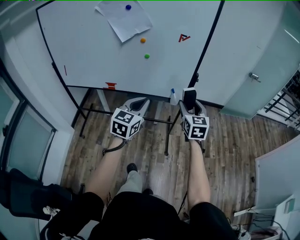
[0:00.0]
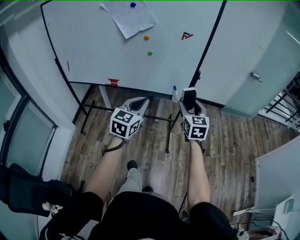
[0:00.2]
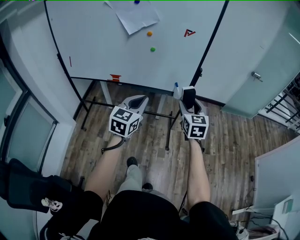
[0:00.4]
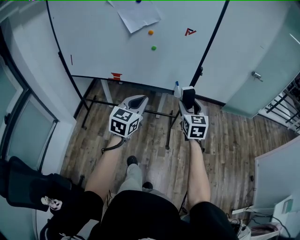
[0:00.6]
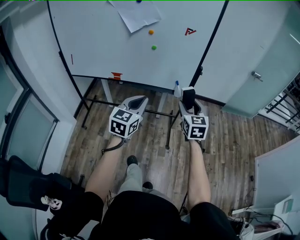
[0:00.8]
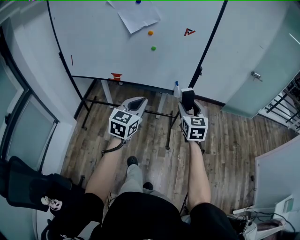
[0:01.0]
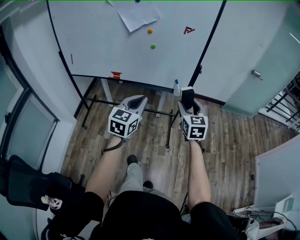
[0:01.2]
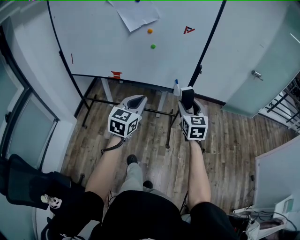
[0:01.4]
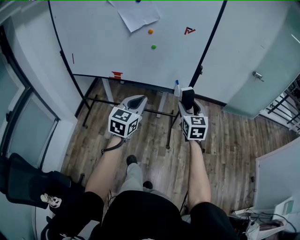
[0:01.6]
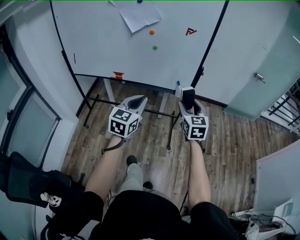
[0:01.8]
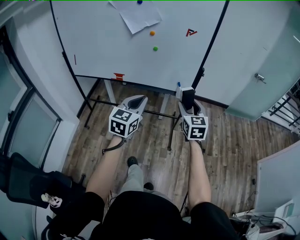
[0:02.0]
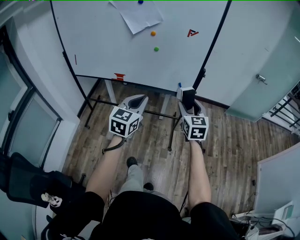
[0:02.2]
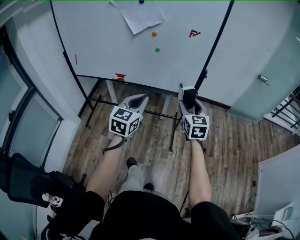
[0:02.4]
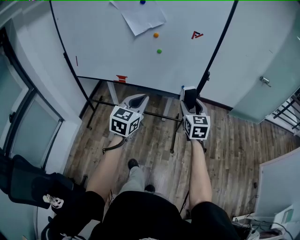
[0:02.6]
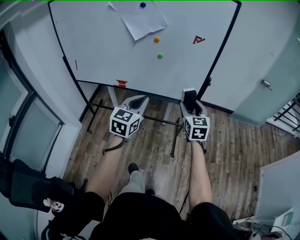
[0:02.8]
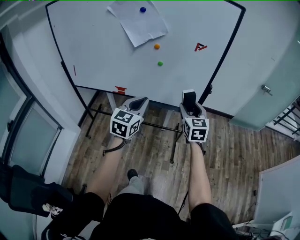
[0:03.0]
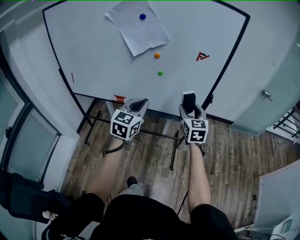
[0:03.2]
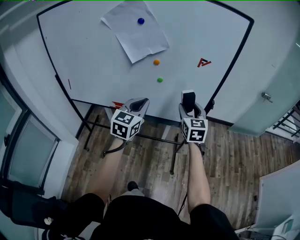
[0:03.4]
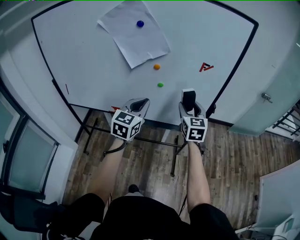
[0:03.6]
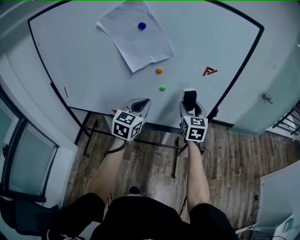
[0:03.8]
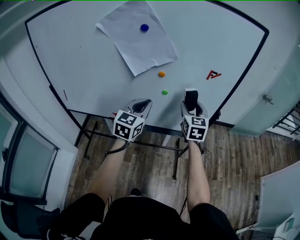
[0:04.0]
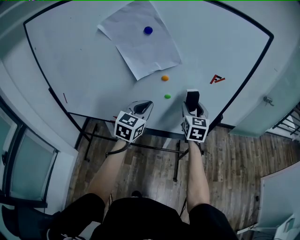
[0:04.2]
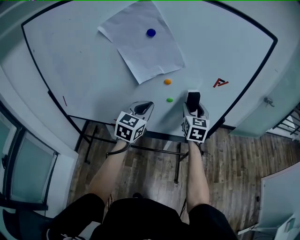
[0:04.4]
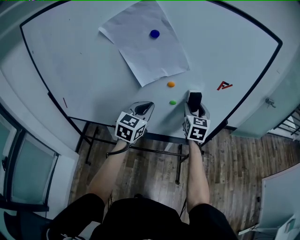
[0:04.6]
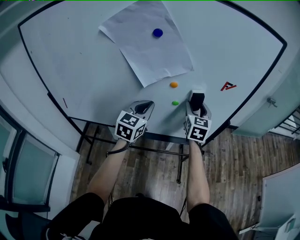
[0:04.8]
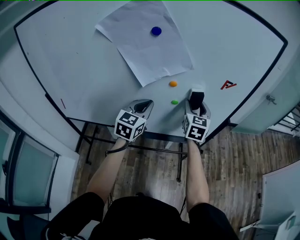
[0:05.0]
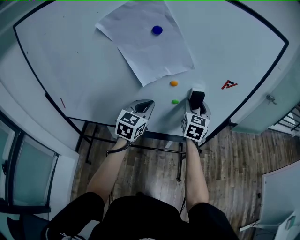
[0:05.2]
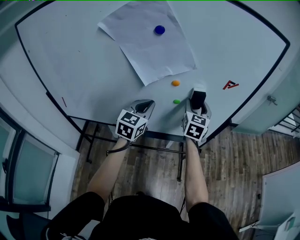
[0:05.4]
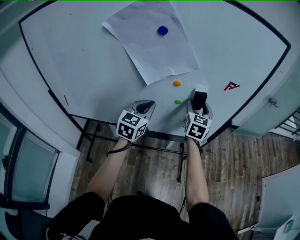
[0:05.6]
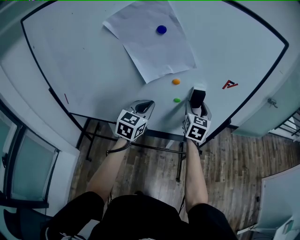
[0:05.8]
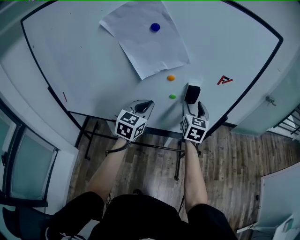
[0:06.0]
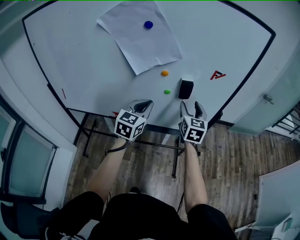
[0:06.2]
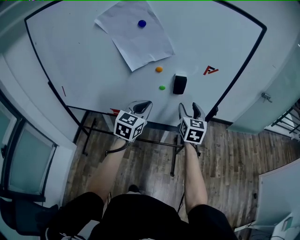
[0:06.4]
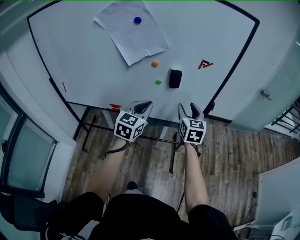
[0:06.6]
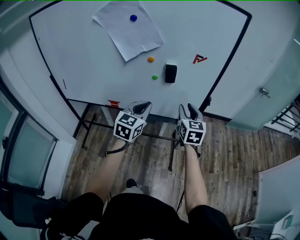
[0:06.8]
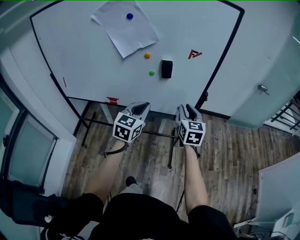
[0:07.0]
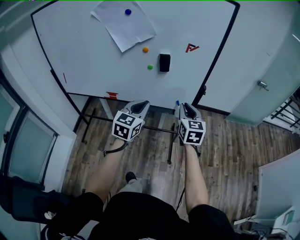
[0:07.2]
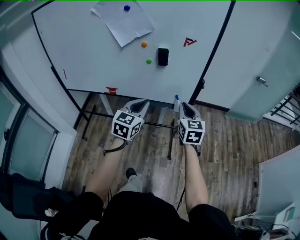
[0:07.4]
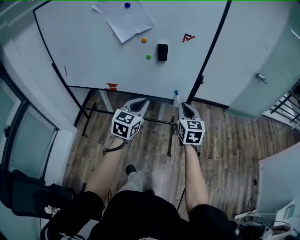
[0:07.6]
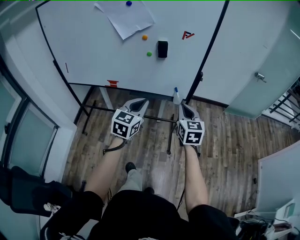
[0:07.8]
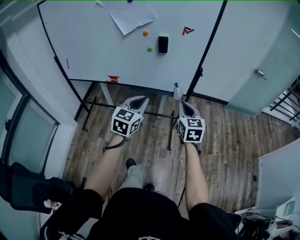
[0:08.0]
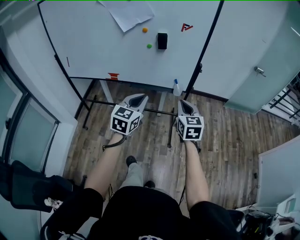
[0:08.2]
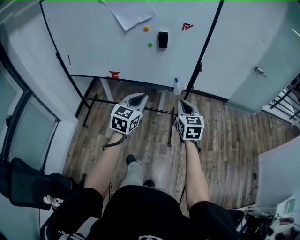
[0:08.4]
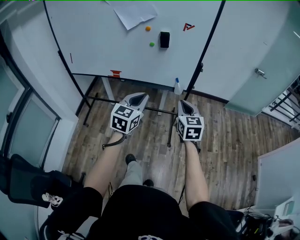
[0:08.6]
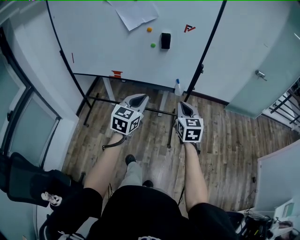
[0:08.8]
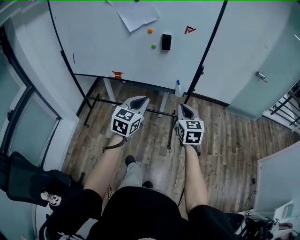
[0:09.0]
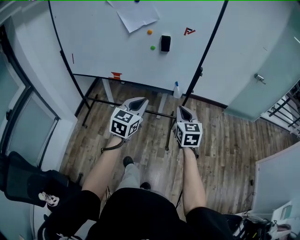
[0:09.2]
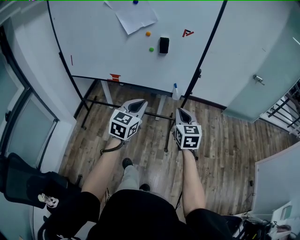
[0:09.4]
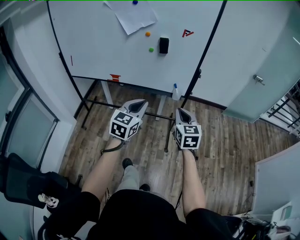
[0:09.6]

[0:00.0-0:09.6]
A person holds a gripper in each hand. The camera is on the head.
0.0 to 1.6 s: Both grippers move backward, roughly 10 cm.
1.6 to 3.2 s: Both grippers move forward, roughly 20 cm.
3.2 to 4.8 s: Both grippers move forward and to the left, about 20 cm.
4.8 to 6.4 s: The left gripper moves to the right and backward, approximately 10 cm. The right gripper heads backward and to the right, covering approximately 10 cm.
6.4 to 8.0 s: Both grippers move backward and to the right, some 25 cm. The right gripper closes its fingers.
8.0 to 9.6 s: The grippers both shift backward by roughly 5 cm.

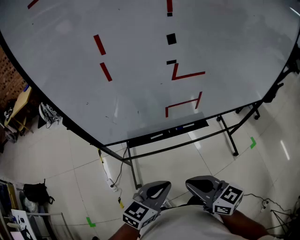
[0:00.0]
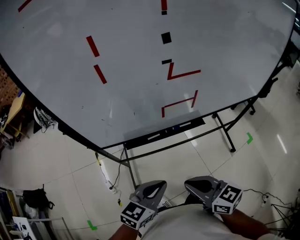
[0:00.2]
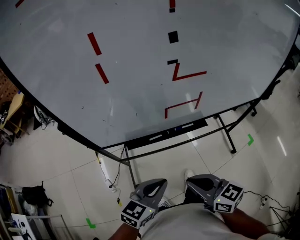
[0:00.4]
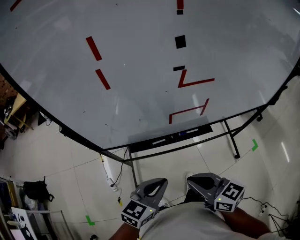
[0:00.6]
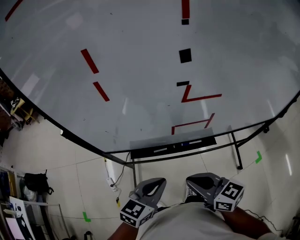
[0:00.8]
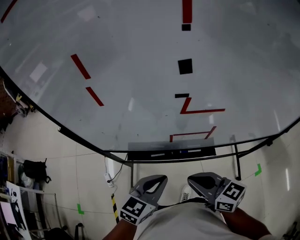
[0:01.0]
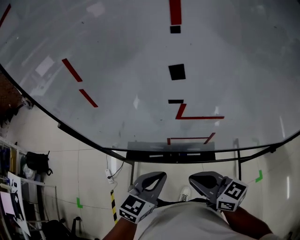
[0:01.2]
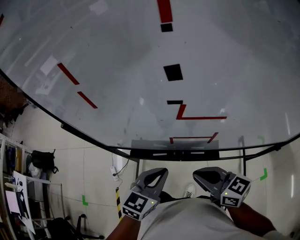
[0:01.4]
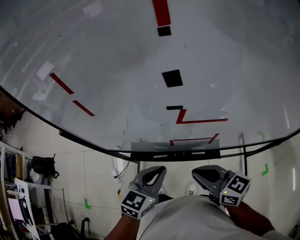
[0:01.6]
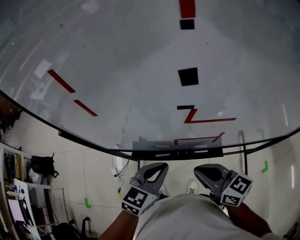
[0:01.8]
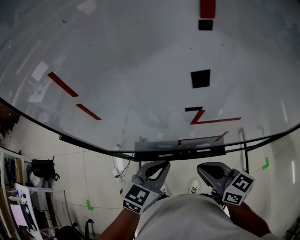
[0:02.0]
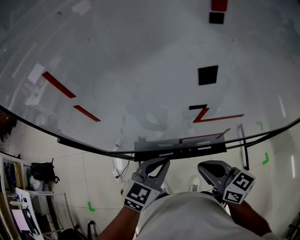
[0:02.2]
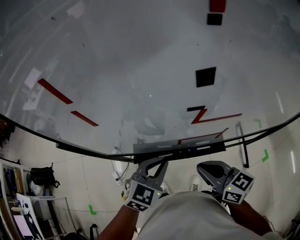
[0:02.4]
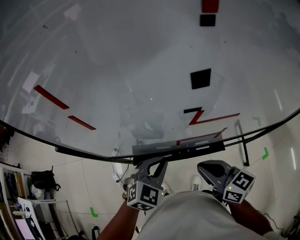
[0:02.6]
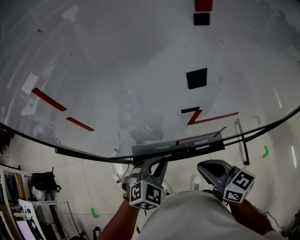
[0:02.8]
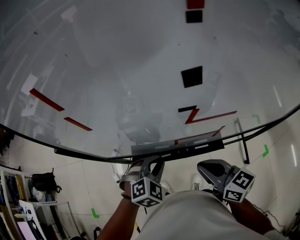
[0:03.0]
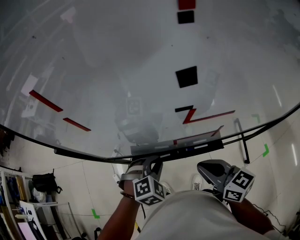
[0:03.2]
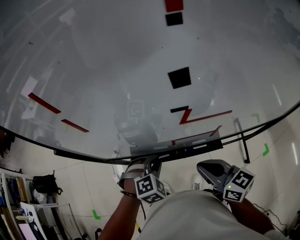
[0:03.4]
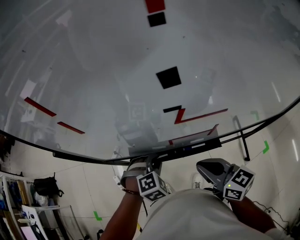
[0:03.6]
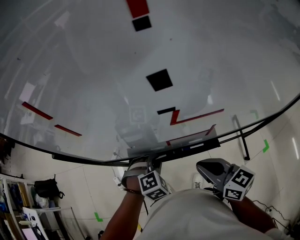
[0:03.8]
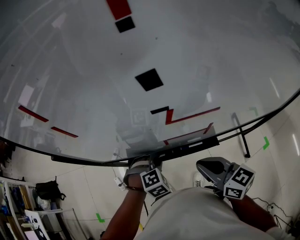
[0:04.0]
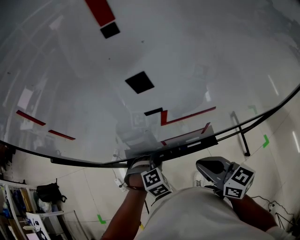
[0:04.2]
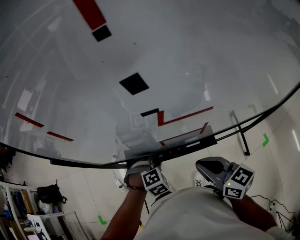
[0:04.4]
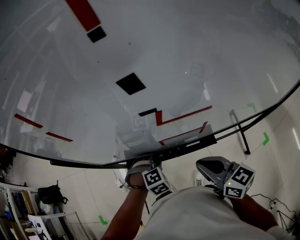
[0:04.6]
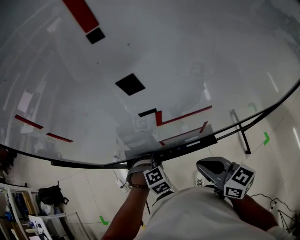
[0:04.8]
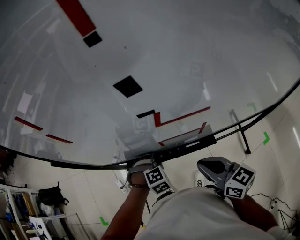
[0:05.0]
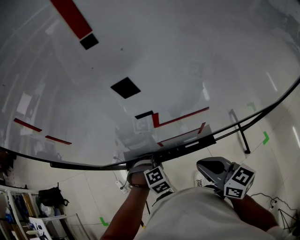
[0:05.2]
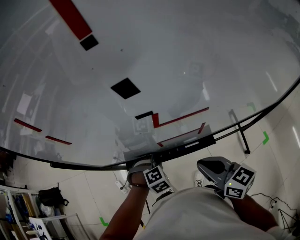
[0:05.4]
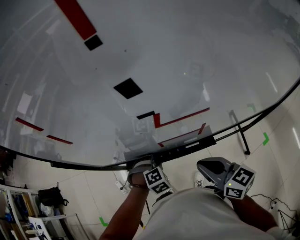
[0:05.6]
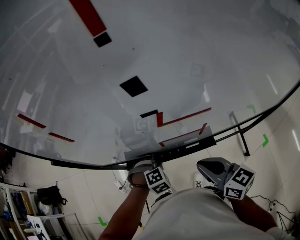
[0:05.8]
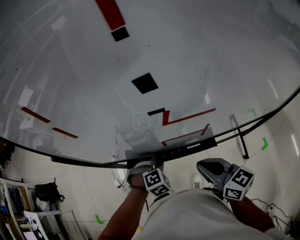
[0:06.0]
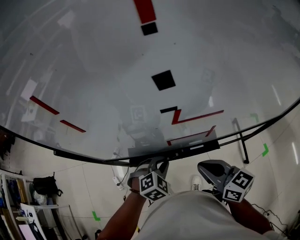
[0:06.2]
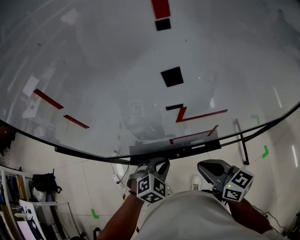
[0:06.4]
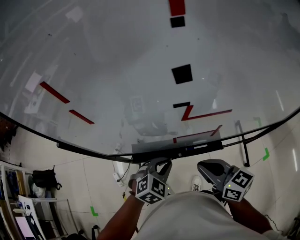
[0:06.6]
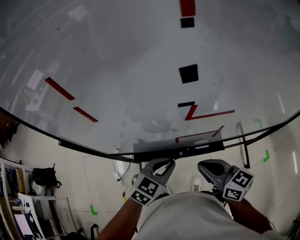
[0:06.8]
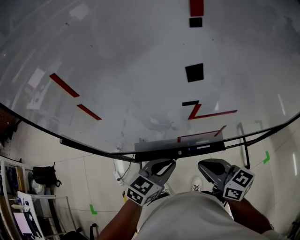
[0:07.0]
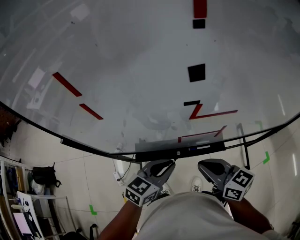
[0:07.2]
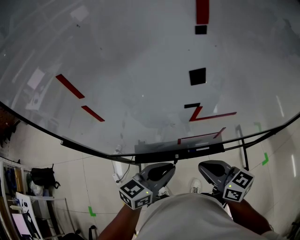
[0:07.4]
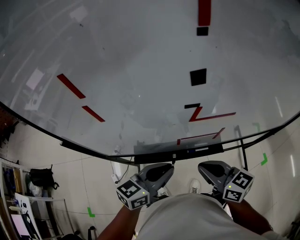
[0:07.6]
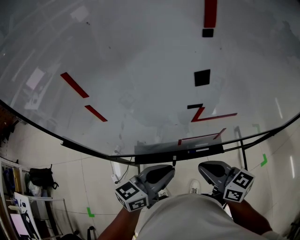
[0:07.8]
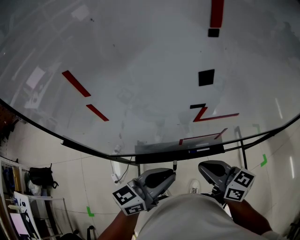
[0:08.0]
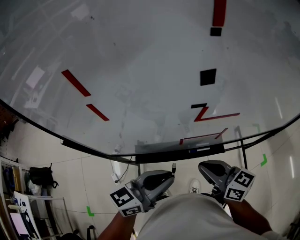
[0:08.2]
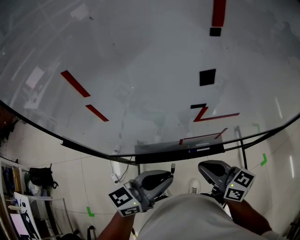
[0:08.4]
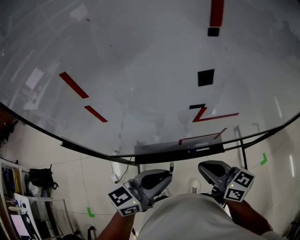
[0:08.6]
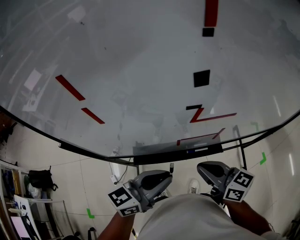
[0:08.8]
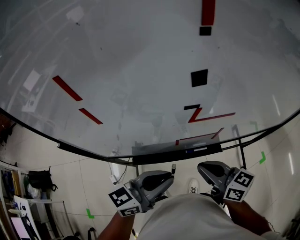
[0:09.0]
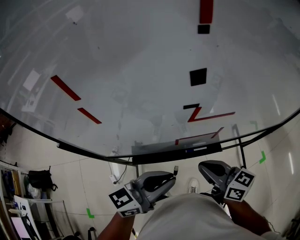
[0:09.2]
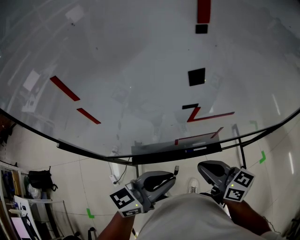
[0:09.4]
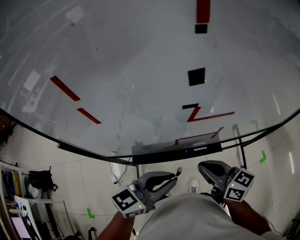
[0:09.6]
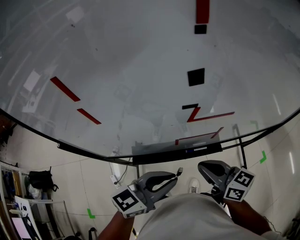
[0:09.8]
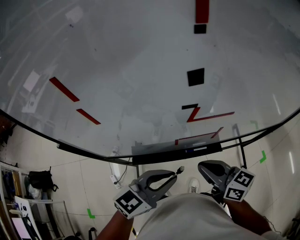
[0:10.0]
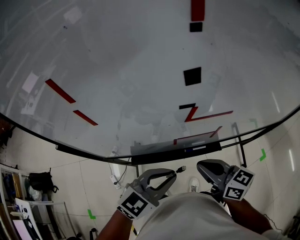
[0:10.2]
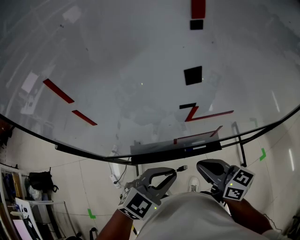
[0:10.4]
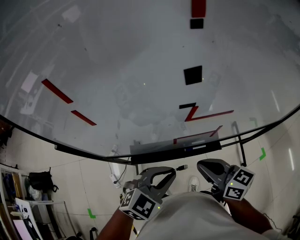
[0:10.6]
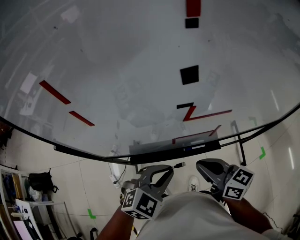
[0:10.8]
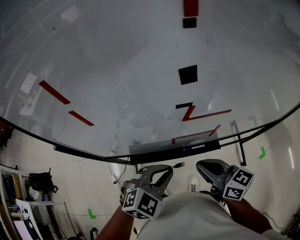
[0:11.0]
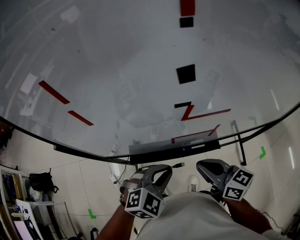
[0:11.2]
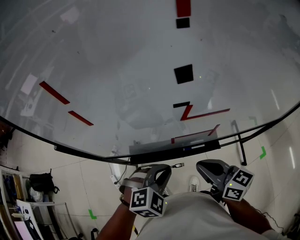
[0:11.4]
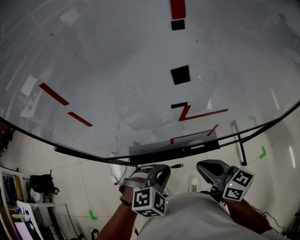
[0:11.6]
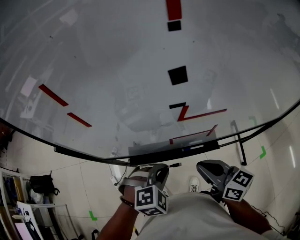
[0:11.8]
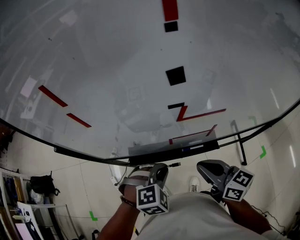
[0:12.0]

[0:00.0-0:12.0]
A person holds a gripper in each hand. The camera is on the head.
0.0 to 1.6 s: The right gripper is displaced forward and to the right by about 20 cm, while the left gripper heads forward, covering approximately 20 cm, and rotates some 20 degrees.
1.6 to 3.0 s: The left gripper travels downward by approximately 5 cm, and twists roughly 40 degrees clockwise, seen from behind.
3.0 to 4.4 s: The left gripper shifts some 10 cm downward, and changes its angle by some 20 degrees.
4.4 to 6.0 s: There are only small adjustments of the grippers.
6.0 to 7.6 s: The left gripper shifts roughly 15 cm upward, and tilts its fingers some 50 degrees upward.
7.6 to 9.0 s: The left gripper ends up some 5 cm from where it was.
9.0 to 10.4 s: The left gripper changes its angle by roughly 40 degrees.
10.4 to 12.0 s: The left gripper shifts approximately 5 cm downward, and swivels some 40 degrees.

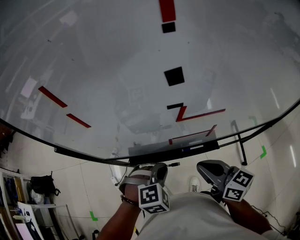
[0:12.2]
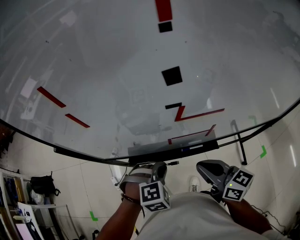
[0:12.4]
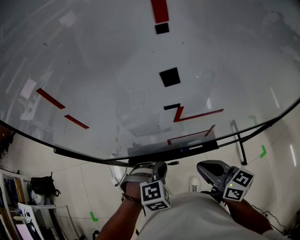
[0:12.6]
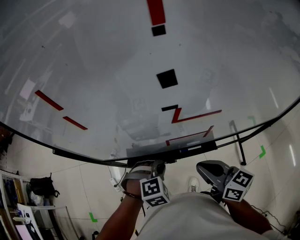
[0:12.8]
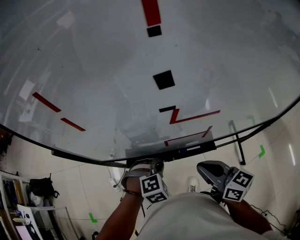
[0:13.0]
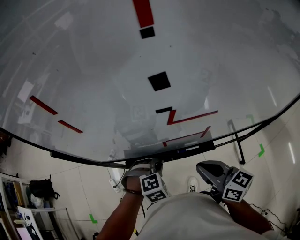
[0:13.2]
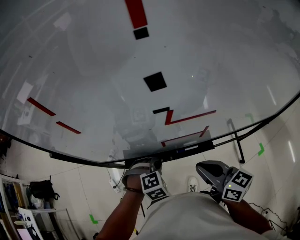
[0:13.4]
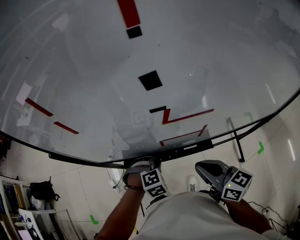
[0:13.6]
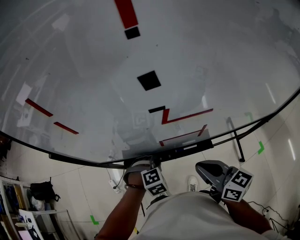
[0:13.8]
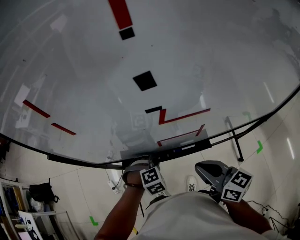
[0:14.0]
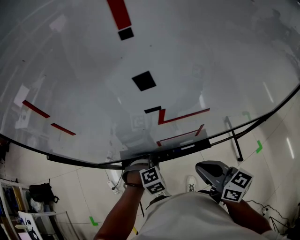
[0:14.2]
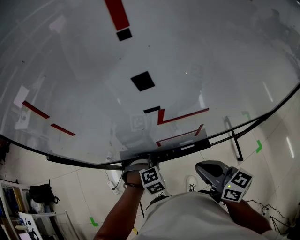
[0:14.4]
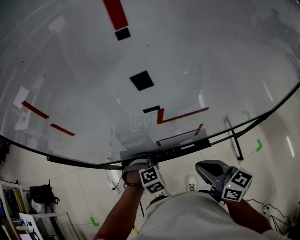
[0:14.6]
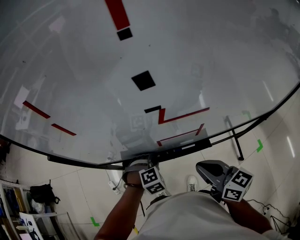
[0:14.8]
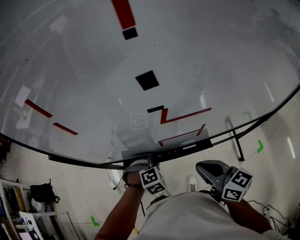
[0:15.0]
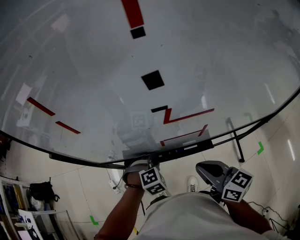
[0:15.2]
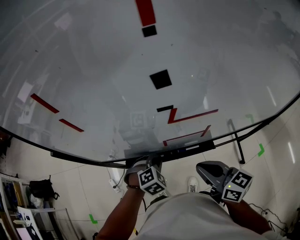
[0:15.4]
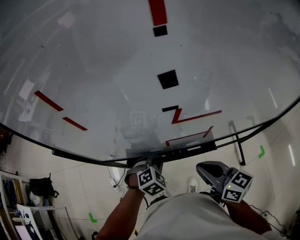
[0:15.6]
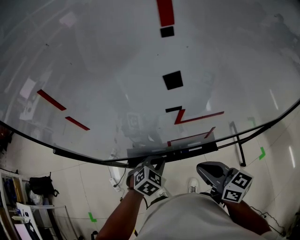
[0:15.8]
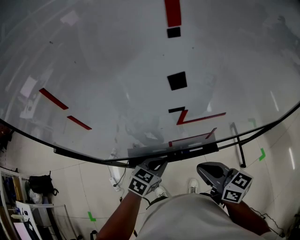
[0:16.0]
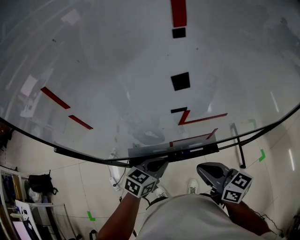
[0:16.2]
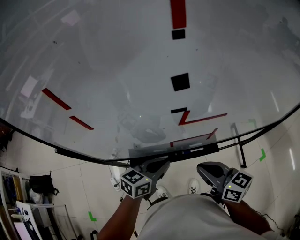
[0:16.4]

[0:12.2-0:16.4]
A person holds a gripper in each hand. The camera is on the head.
12.2 to 13.6 s: The left gripper shifts some 10 cm downward.
13.6 to 15.0 s: The grippers make only small movements.
15.0 to 16.4 s: The left gripper is displaced upward by approximately 10 cm, and angles its fingers upward, by approximately 40 degrees.
